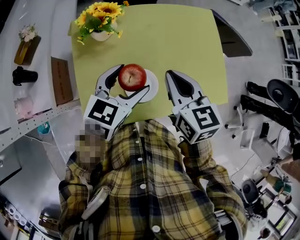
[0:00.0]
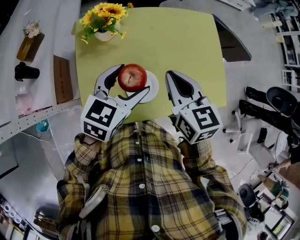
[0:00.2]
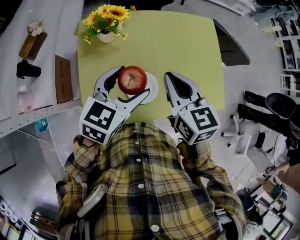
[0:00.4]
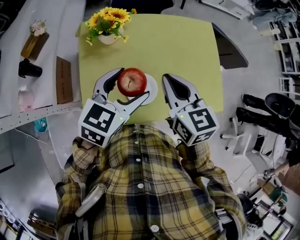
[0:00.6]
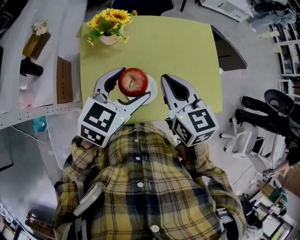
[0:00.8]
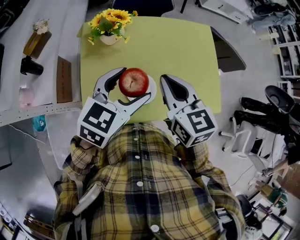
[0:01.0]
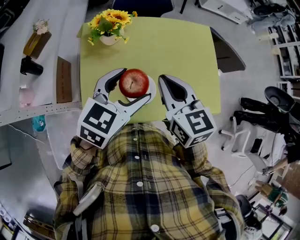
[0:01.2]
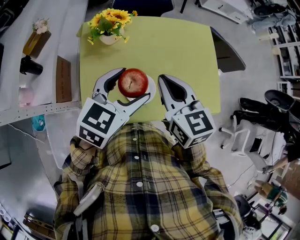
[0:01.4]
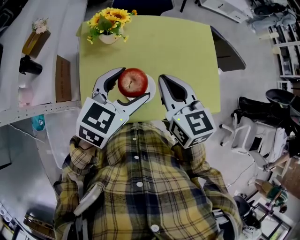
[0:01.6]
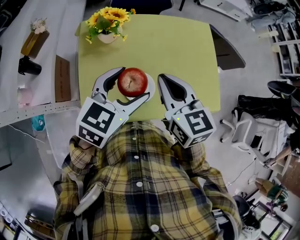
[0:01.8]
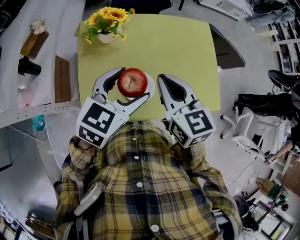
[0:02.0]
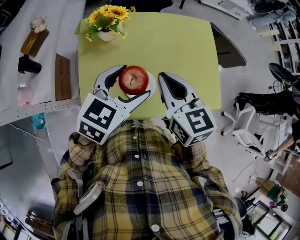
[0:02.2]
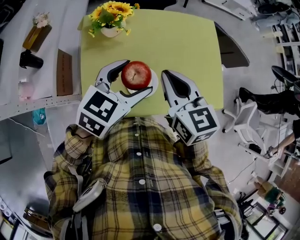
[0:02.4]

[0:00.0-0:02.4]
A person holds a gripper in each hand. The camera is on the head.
0.0 to 1.2 s: The right gripper moves roughly 5 cm. The left gripper travels upward by about 5 cm.
1.2 to 2.4 s: Both grippers stay about where they are.

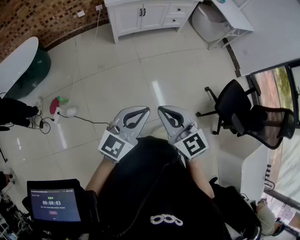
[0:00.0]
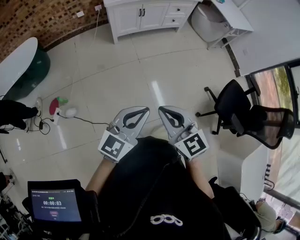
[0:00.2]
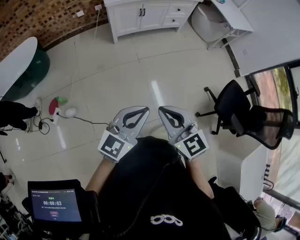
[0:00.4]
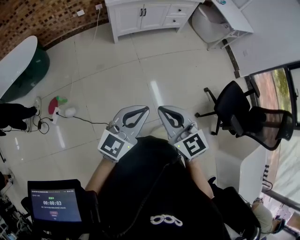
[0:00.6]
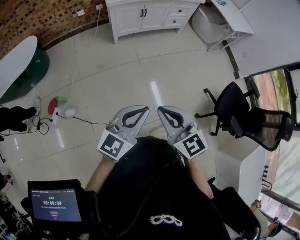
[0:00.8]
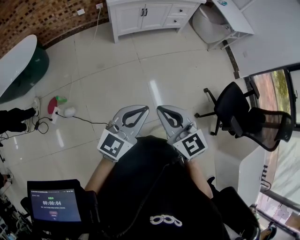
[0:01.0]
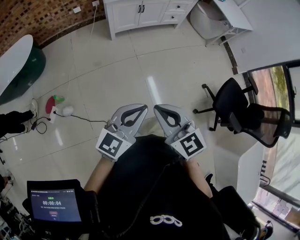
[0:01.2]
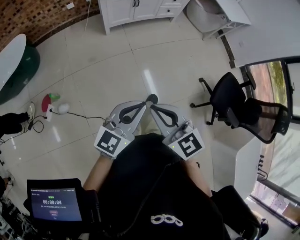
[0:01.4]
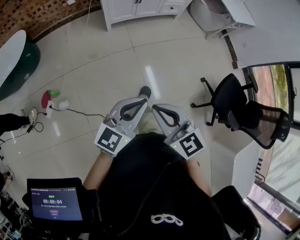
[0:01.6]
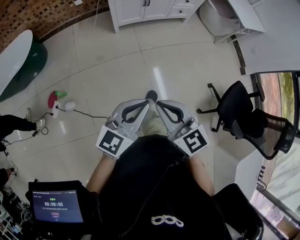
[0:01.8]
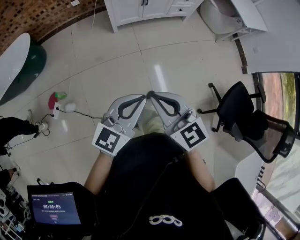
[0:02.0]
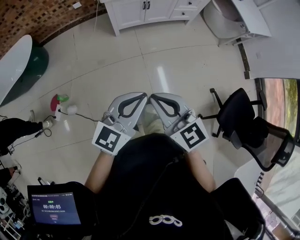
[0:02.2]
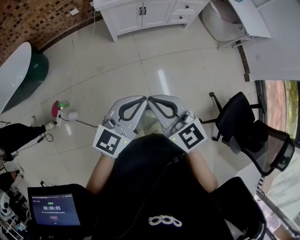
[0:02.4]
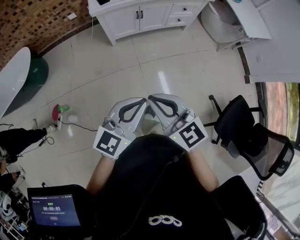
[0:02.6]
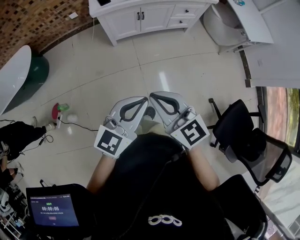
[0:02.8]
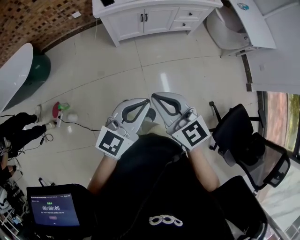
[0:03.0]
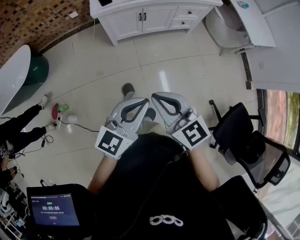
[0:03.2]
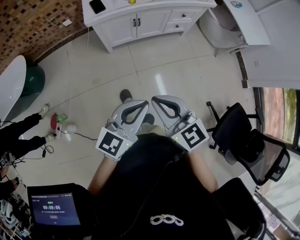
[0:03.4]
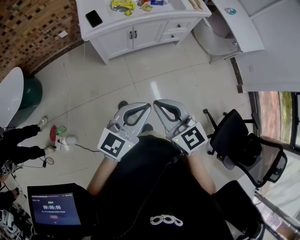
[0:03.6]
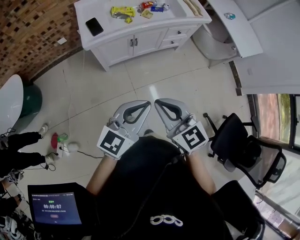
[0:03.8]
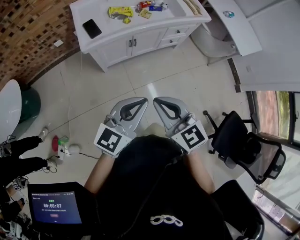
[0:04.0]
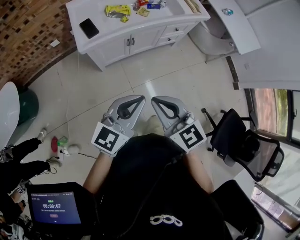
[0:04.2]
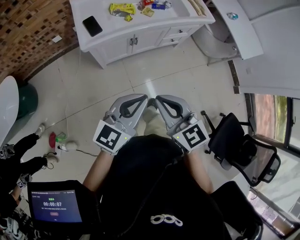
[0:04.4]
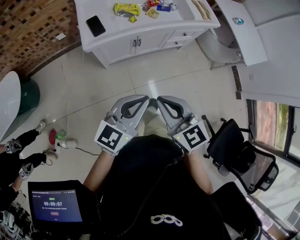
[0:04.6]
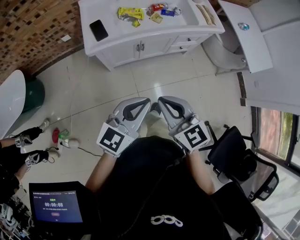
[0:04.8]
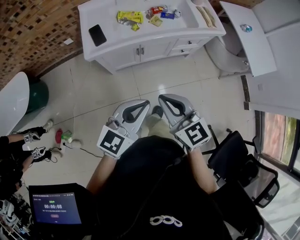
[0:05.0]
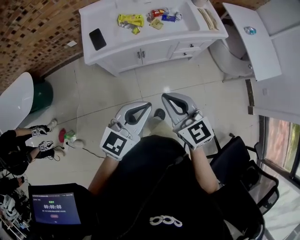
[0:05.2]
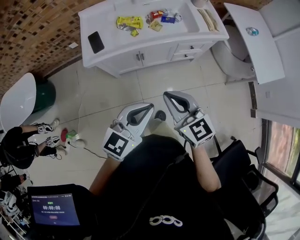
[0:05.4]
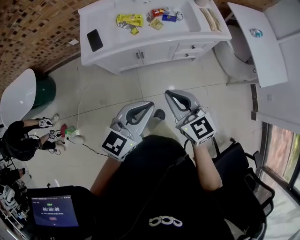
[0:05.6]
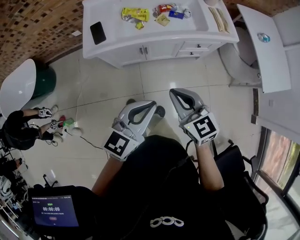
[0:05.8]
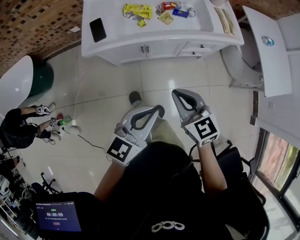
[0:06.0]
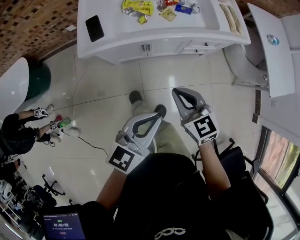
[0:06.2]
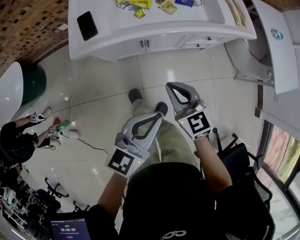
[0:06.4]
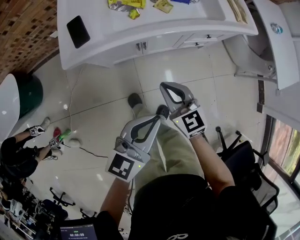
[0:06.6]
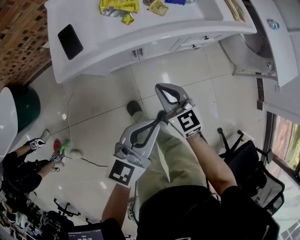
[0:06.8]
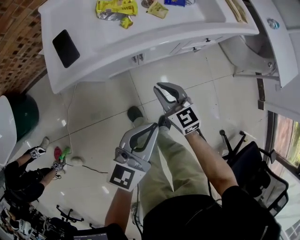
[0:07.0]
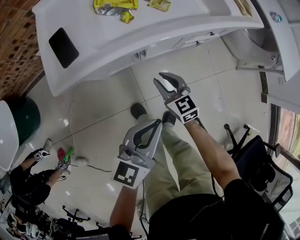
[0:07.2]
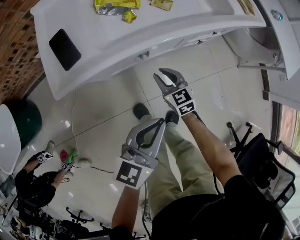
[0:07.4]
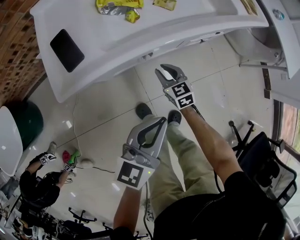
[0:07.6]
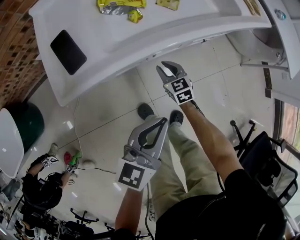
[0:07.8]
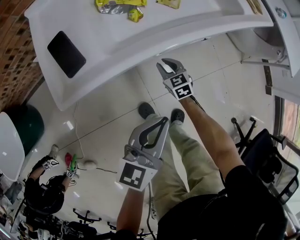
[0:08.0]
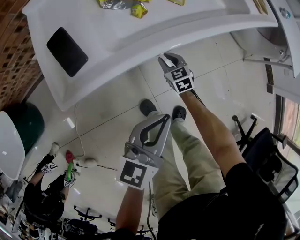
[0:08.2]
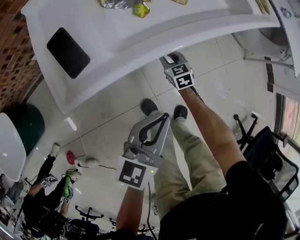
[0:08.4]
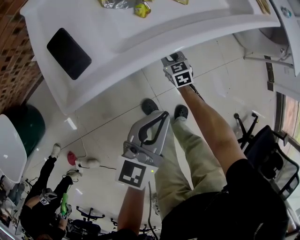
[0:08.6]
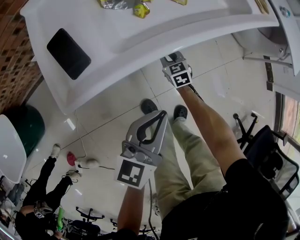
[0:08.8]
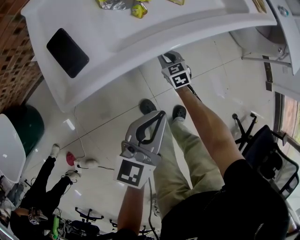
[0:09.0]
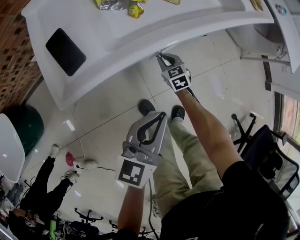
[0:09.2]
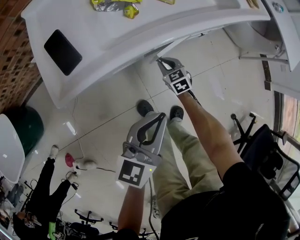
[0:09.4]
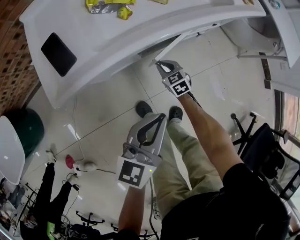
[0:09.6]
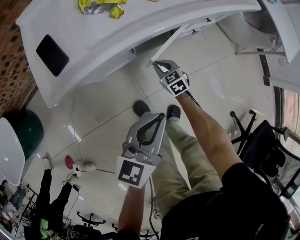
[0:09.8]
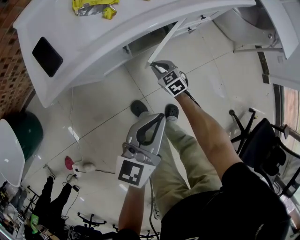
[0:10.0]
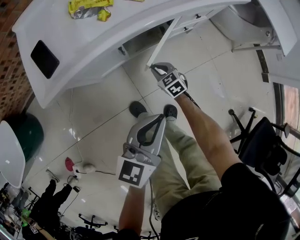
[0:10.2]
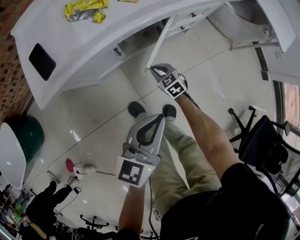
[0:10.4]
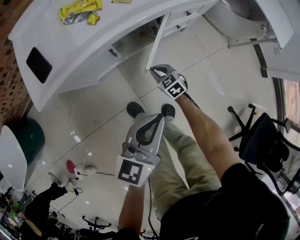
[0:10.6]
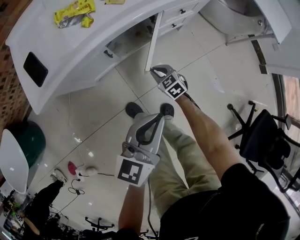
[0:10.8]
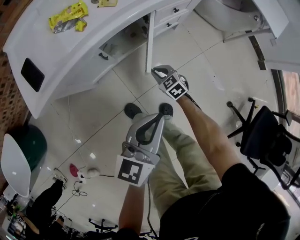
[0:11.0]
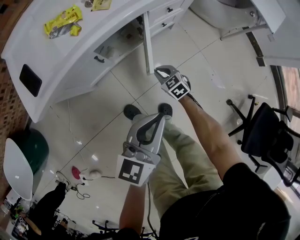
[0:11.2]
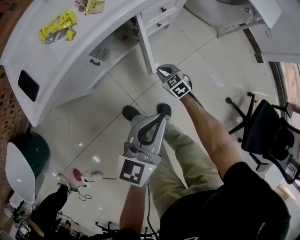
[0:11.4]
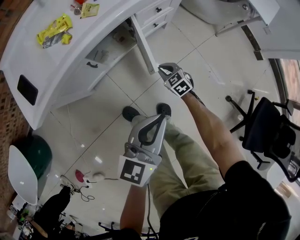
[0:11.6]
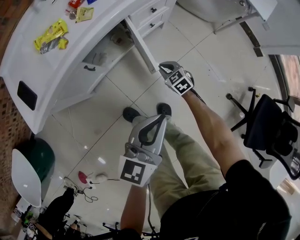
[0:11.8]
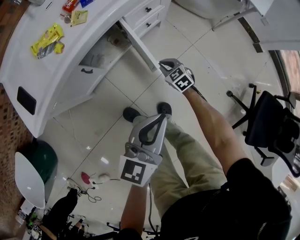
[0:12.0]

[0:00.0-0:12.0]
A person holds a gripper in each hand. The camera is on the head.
0.0 to 1.6 s: The left gripper changes place by about 5 cm.
1.6 to 3.0 s: Both grippers move forward, roughly 20 cm.
3.0 to 4.4 s: Both grippers move forward, some 20 cm.
4.4 to 6.0 s: The right gripper goes approximately 25 cm forward, to the right and downward. Meanwhile the left gripper heads to the right and forward, covering roughly 15 cm.
6.0 to 7.6 s: The right gripper moves downward and forward, some 40 cm, and rotates about 20 degrees, while the left gripper heads downward, to the left and forward, covering roughly 20 cm.
7.6 to 9.0 s: The left gripper changes place by some 5 cm. The right gripper is displaced downward and forward by roughly 10 cm.
9.0 to 10.4 s: The left gripper shifts about 15 cm to the right and backward; the right gripper travels backward and to the right by some 15 cm.
10.4 to 12.0 s: The two grippers go approximately 15 cm to the right.

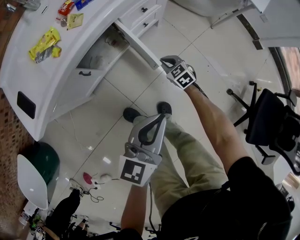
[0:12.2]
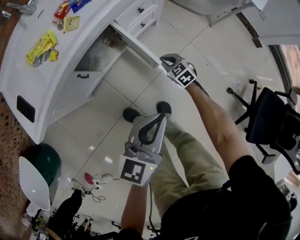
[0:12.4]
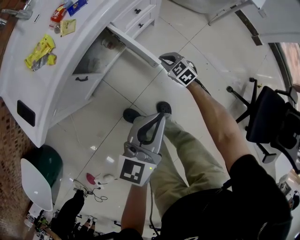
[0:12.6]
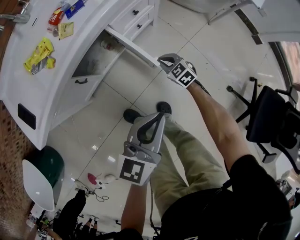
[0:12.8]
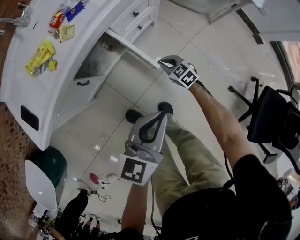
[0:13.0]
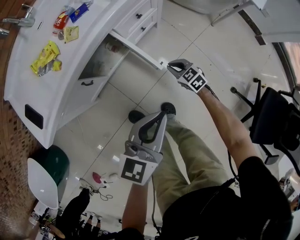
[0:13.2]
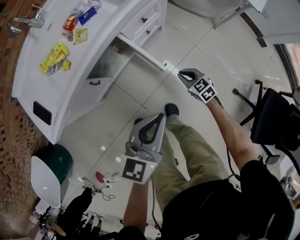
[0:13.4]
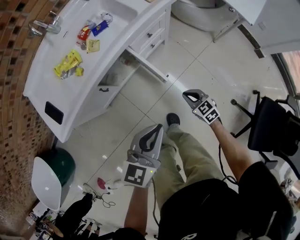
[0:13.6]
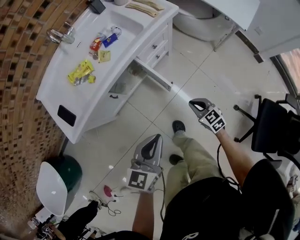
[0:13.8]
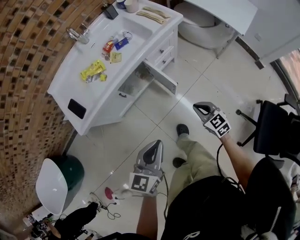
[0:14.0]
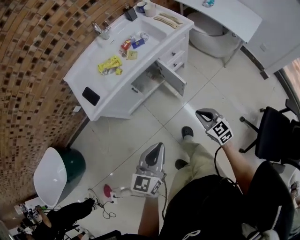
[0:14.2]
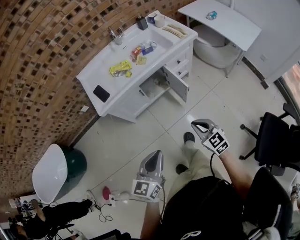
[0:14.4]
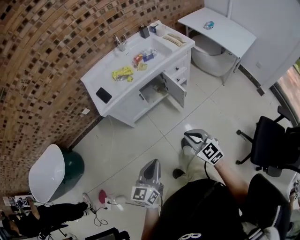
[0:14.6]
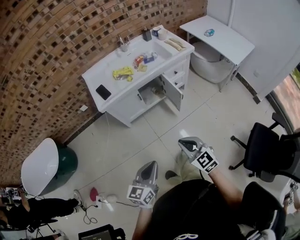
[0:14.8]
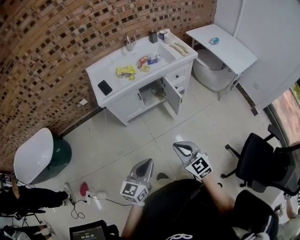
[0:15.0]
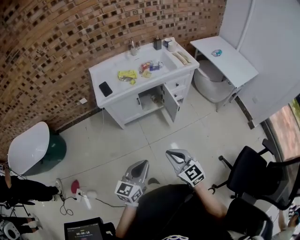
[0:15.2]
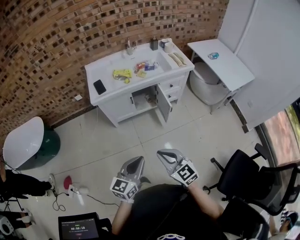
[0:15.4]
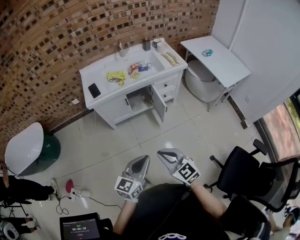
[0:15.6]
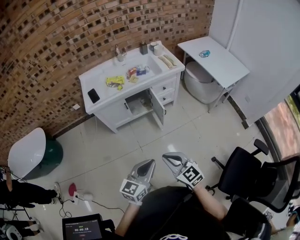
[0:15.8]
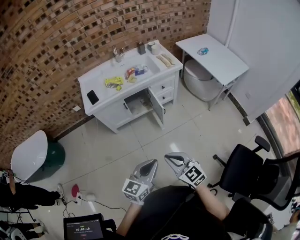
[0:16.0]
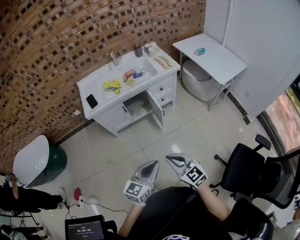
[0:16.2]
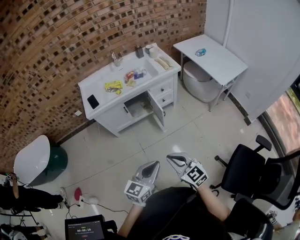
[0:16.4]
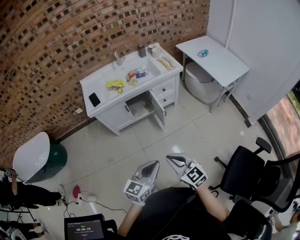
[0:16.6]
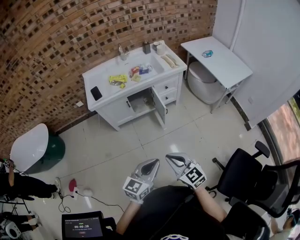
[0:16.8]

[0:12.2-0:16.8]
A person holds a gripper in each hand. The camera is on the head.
12.2 to 13.8 s: The left gripper travels upward by approximately 10 cm, while the right gripper travels upward and backward by approximately 20 cm.
13.8 to 15.2 s: The right gripper travels backward, upward and to the left by some 40 cm, and turns by roughly 30 degrees; the left gripper is displaced backward by about 30 cm, and rotates approximately 20 degrees.
15.2 to 16.8 s: The right gripper travels to the right by roughly 10 cm; the left gripper goes roughly 15 cm to the right.

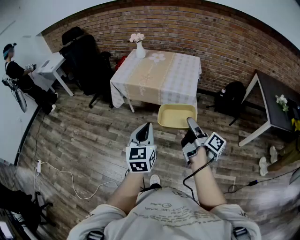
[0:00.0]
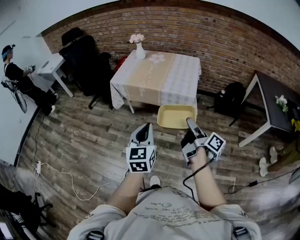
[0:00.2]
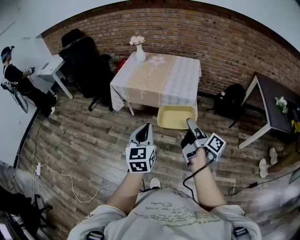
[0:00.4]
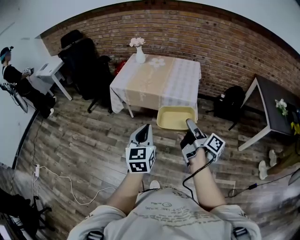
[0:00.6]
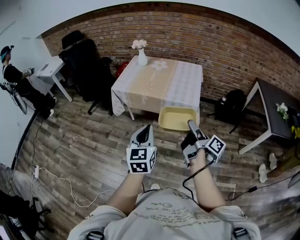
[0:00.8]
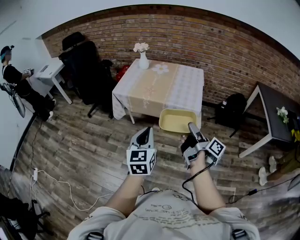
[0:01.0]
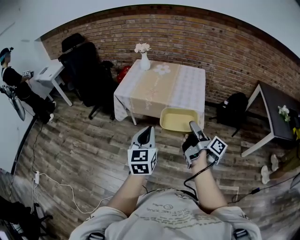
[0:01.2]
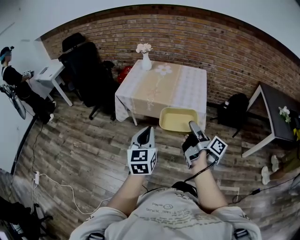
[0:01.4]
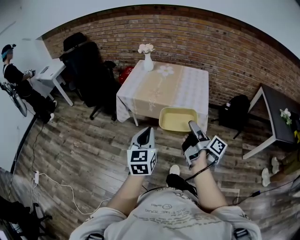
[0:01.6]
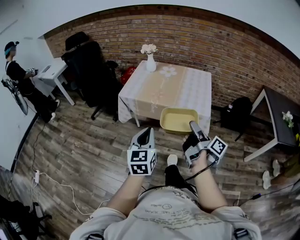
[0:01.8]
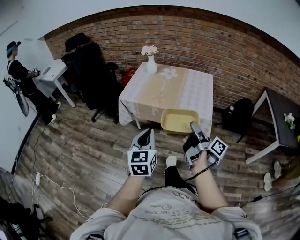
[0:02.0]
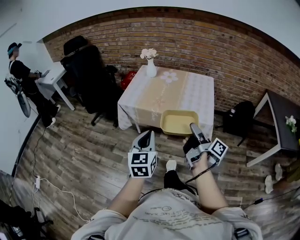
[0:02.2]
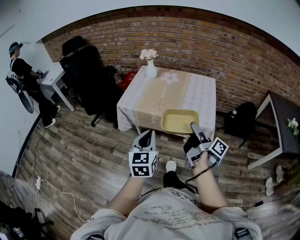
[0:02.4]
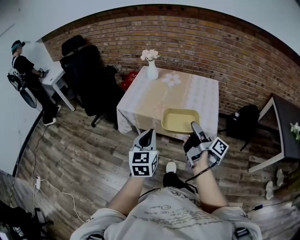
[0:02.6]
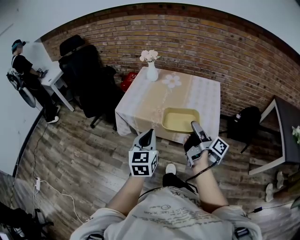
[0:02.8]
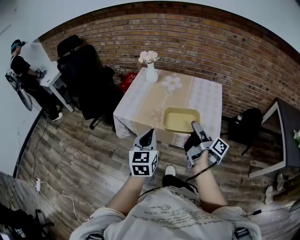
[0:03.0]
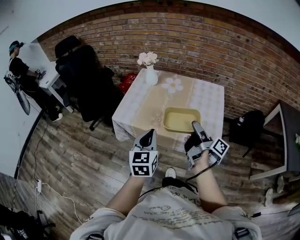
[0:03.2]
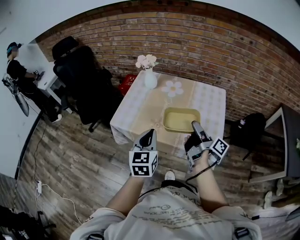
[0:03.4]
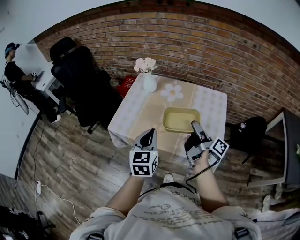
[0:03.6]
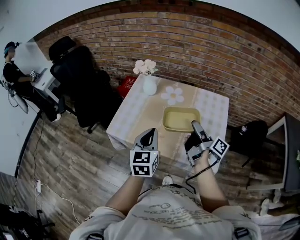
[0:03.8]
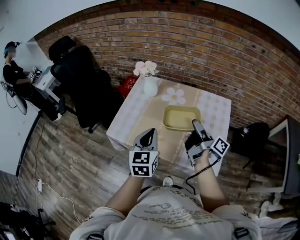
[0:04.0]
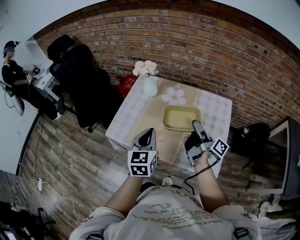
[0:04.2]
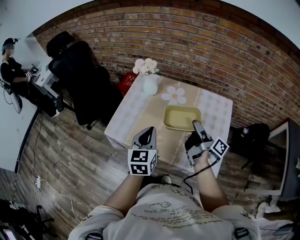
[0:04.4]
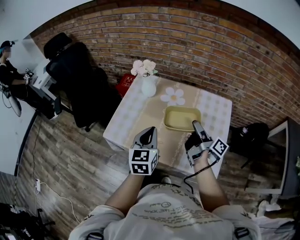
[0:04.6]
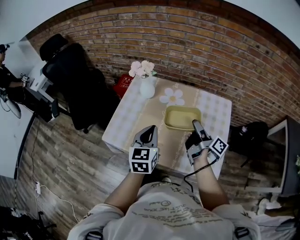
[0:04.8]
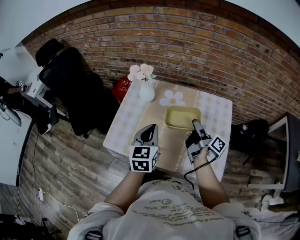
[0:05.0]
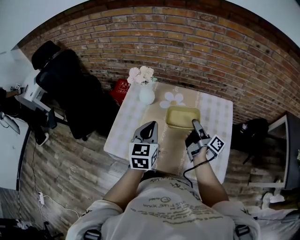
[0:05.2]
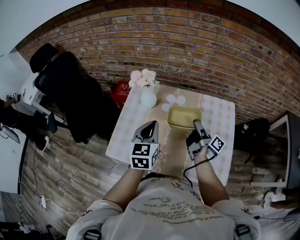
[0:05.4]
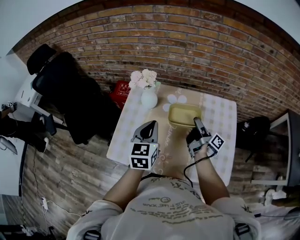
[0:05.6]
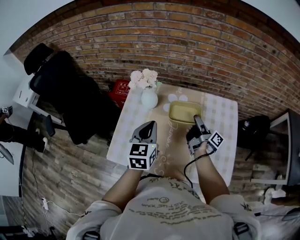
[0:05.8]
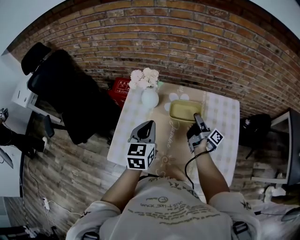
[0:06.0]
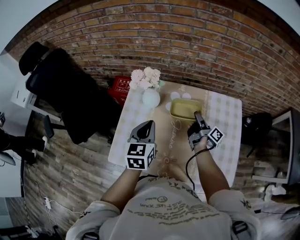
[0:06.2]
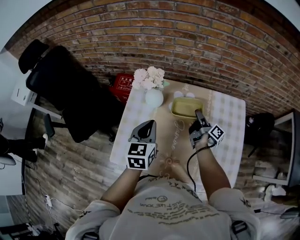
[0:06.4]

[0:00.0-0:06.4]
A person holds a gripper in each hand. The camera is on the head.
0.0 to 1.6 s: The grippers both shift forward and to the left by approximately 15 cm.
1.6 to 3.2 s: Both grippers move forward, approximately 30 cm.
3.2 to 4.8 s: Both grippers travel together forward, roughly 25 cm.
4.8 to 6.4 s: The left gripper travels forward and to the left by roughly 20 cm. The right gripper goes some 25 cm forward and downward.
